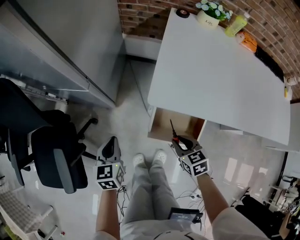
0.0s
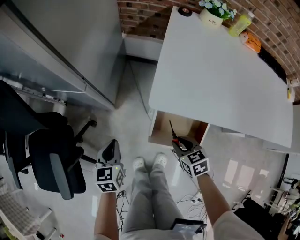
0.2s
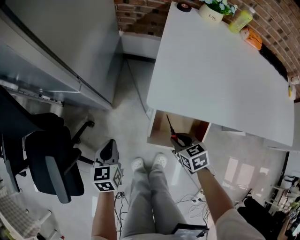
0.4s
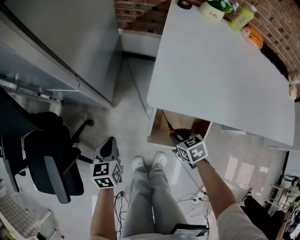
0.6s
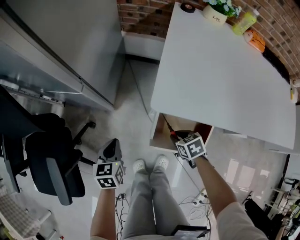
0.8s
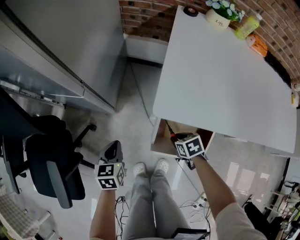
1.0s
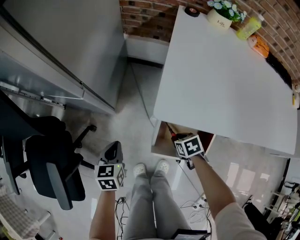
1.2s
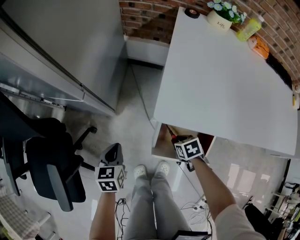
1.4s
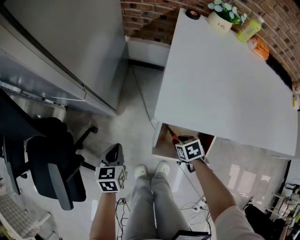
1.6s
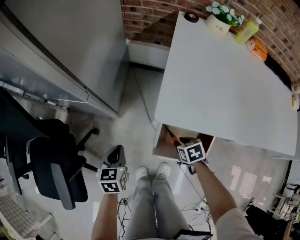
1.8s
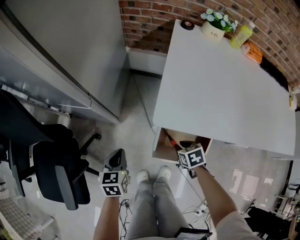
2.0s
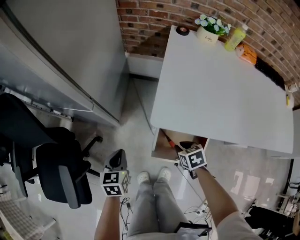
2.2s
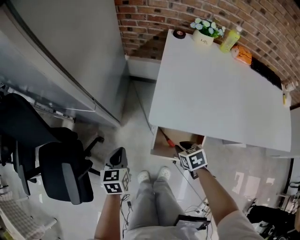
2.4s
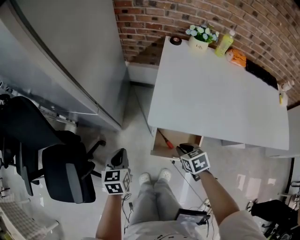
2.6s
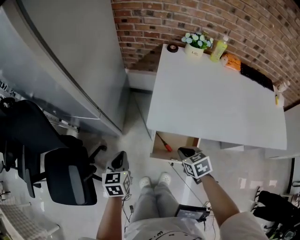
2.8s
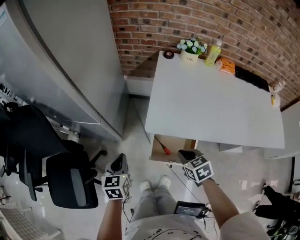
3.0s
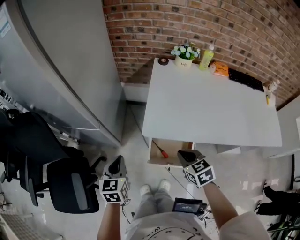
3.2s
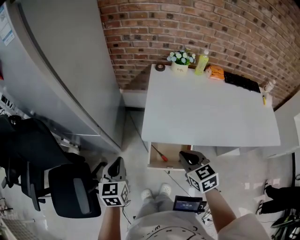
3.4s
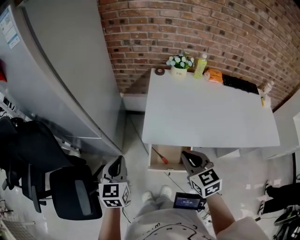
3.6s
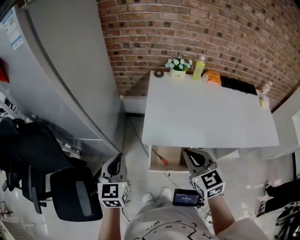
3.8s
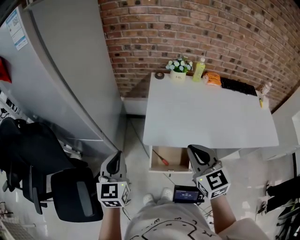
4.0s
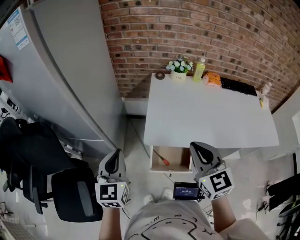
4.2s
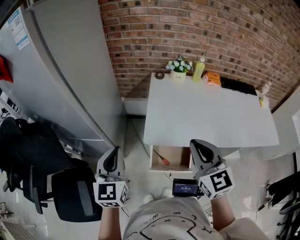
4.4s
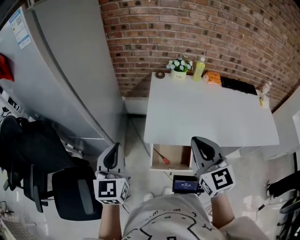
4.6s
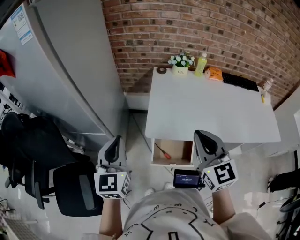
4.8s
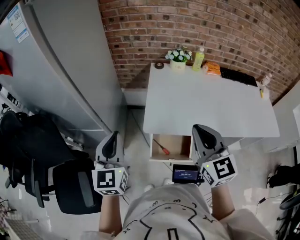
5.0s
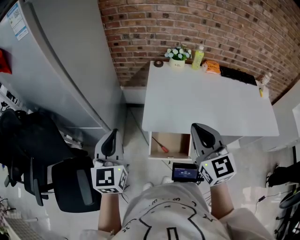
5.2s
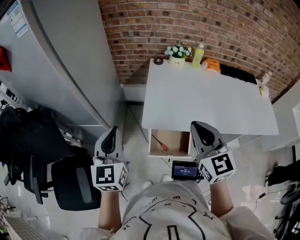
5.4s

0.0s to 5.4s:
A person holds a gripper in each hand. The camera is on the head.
0.0s to 1.4s: The right gripper shifts approximately 15 cm downward and forward, and rotates some 20 degrees, while the left gripper is displaced downward by about 10 cm.
1.4s to 2.8s: Both grippers move upward, roughly 20 cm.
2.8s to 4.0s: The grippers both shift upward by approximately 25 cm. The right gripper tips its fingers upward by approximately 40 degrees, while the left gripper swivels roughly 30 degrees.
4.0s to 5.4s: The left gripper shifts about 5 cm upward.

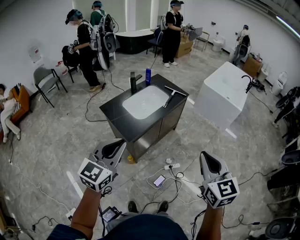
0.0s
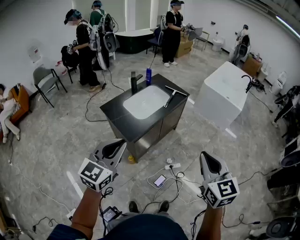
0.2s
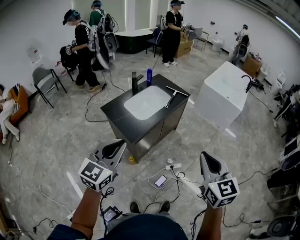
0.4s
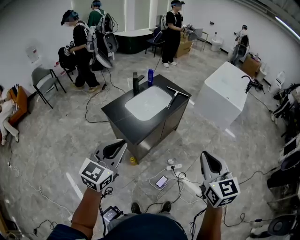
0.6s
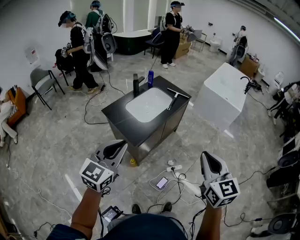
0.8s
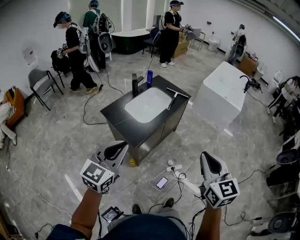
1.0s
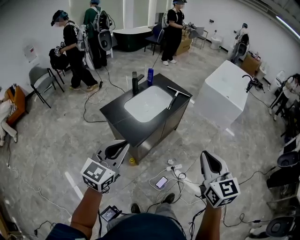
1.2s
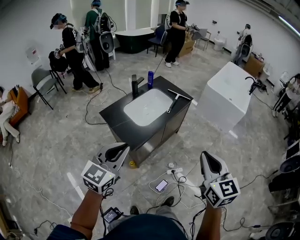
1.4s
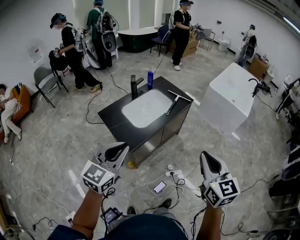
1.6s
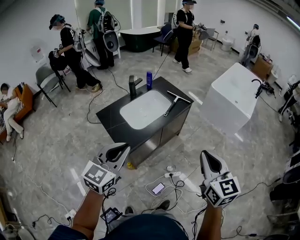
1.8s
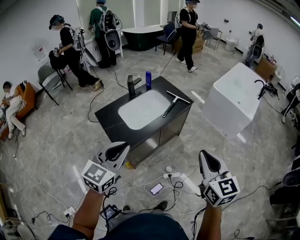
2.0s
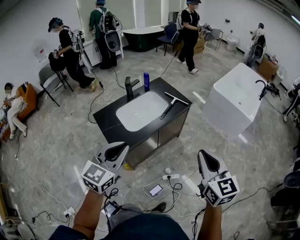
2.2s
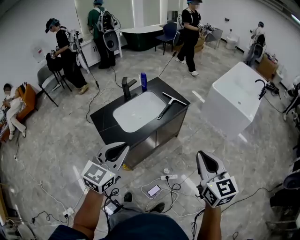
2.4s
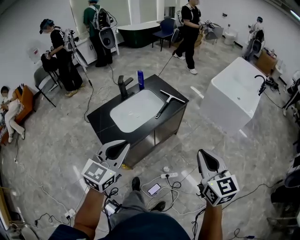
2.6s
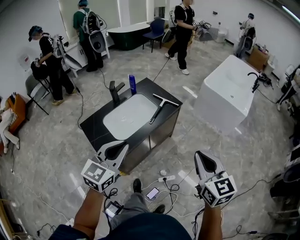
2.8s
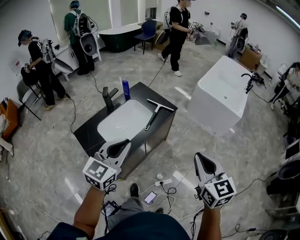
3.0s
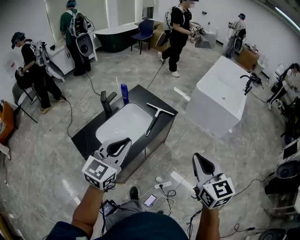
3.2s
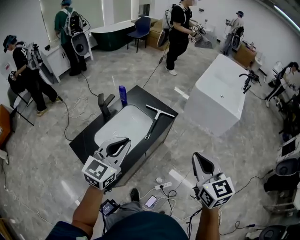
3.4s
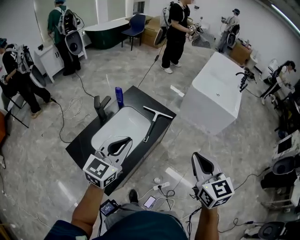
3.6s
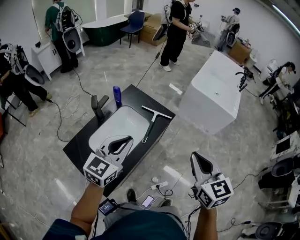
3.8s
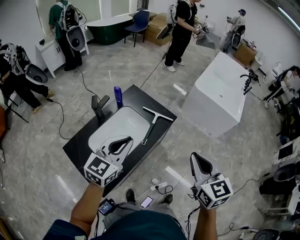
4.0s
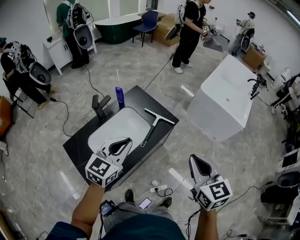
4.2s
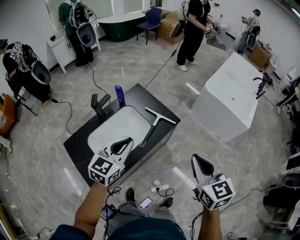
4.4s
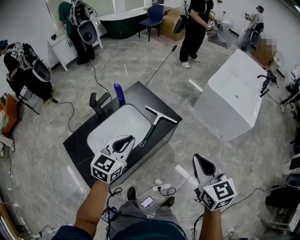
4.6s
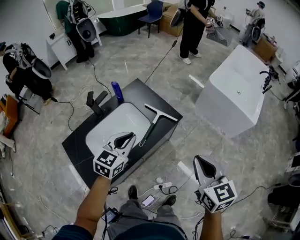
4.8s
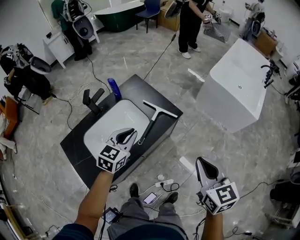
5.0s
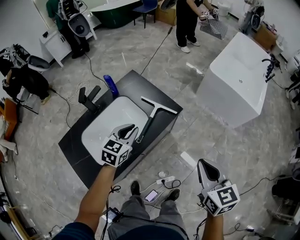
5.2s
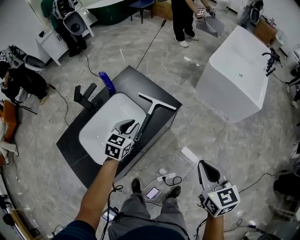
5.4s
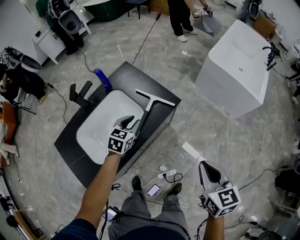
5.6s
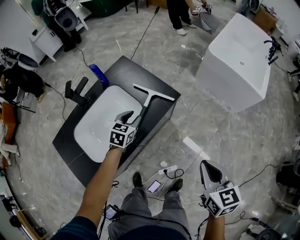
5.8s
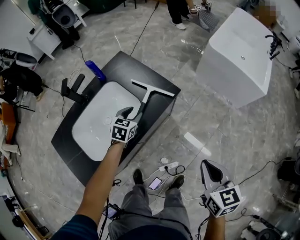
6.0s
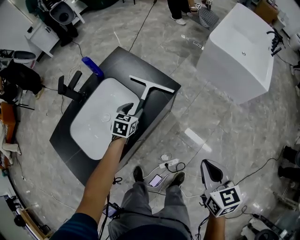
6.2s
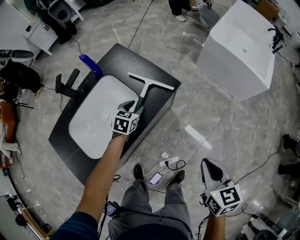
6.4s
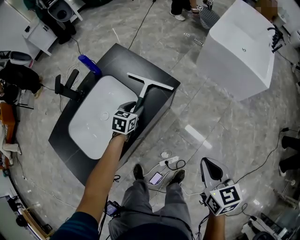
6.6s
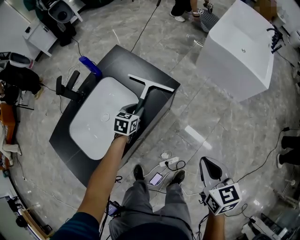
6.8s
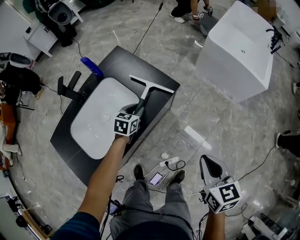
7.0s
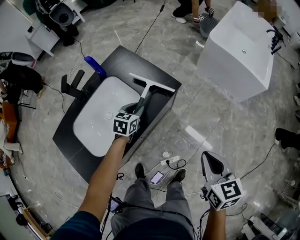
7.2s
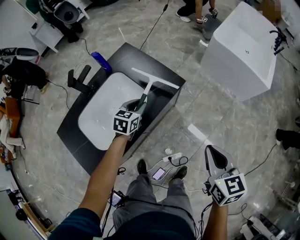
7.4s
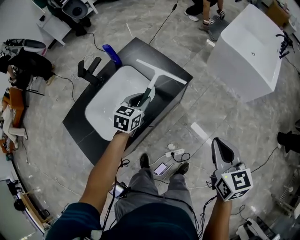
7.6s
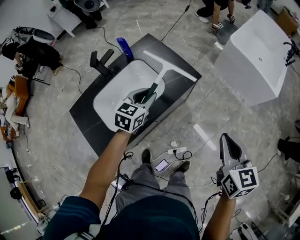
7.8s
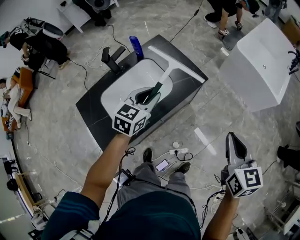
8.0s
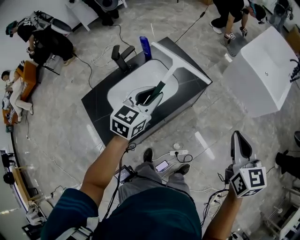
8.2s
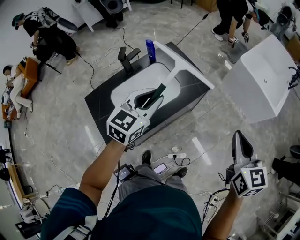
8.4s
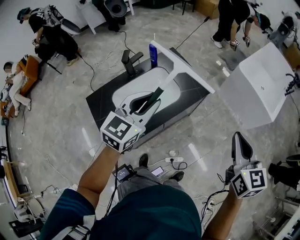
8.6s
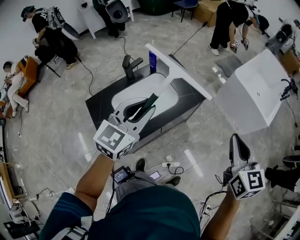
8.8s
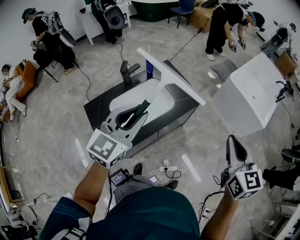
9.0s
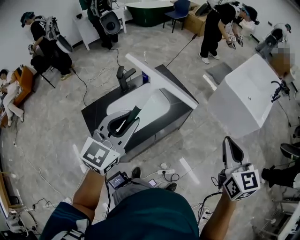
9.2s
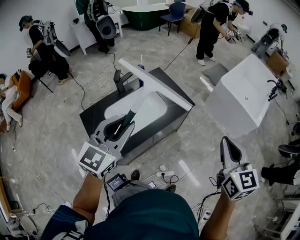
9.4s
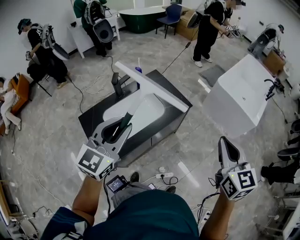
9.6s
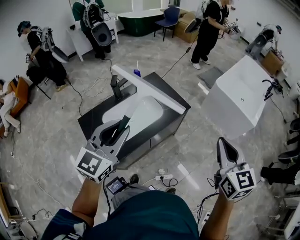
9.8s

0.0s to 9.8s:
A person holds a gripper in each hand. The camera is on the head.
0.0s to 1.4s: Both grippers travel together forward, about 10 cm.
1.4s to 2.8s: The two grippers go roughly 25 cm forward and to the right.
2.8s to 4.2s: Both grippers move forward, some 25 cm.
4.2s to 5.6s: The right gripper is displaced downward and to the right by about 20 cm. The left gripper moves downward and forward, roughly 35 cm, and turns by roughly 20 degrees.
5.6s to 7.0s: The left gripper travels downward by roughly 10 cm, and opens, then closes once more, while the right gripper shifts roughly 5 cm downward.
7.0s to 8.4s: The left gripper shifts about 40 cm upward and backward, and turns by about 30 degrees, while the right gripper heads upward, covering about 20 cm.
8.4s to 9.8s: The left gripper moves backward and upward, some 20 cm, while the right gripper heads upward and backward, covering roughly 10 cm.

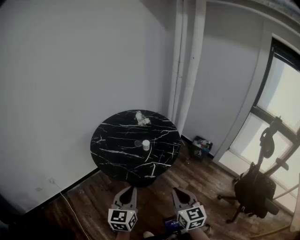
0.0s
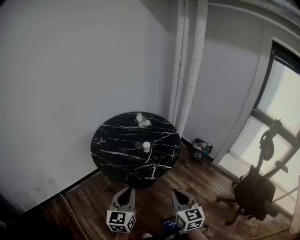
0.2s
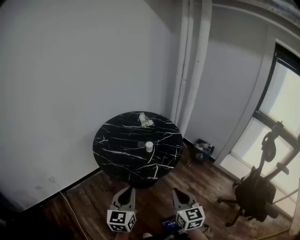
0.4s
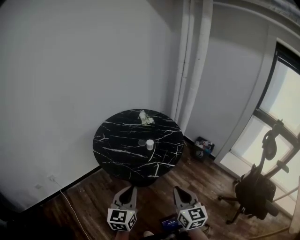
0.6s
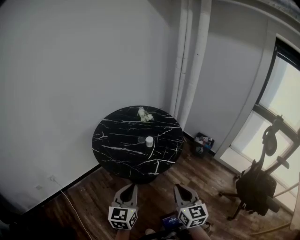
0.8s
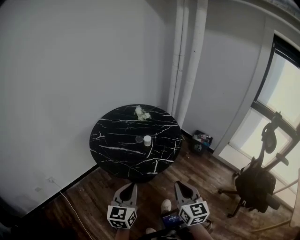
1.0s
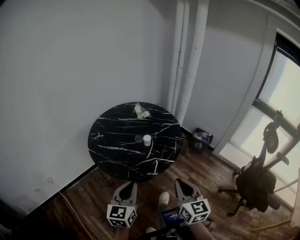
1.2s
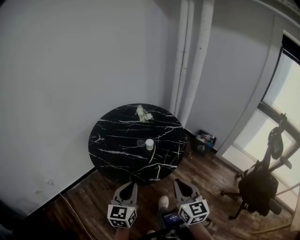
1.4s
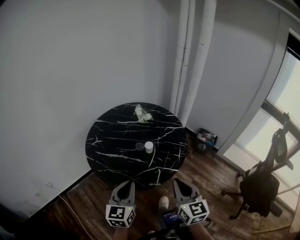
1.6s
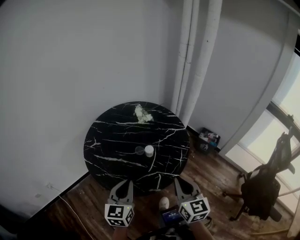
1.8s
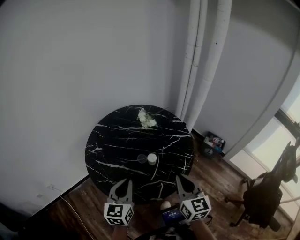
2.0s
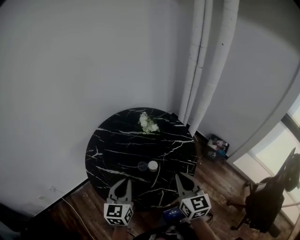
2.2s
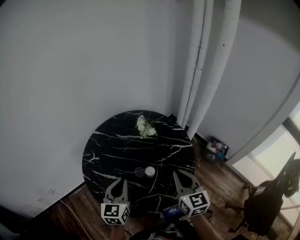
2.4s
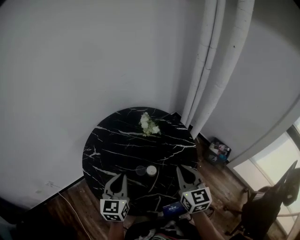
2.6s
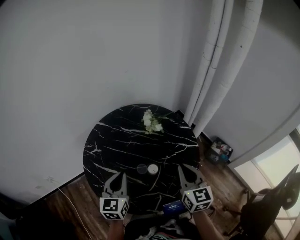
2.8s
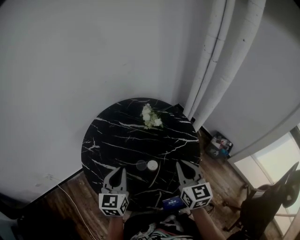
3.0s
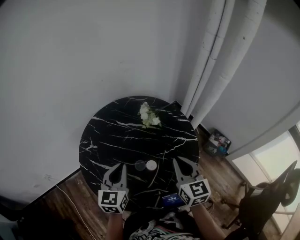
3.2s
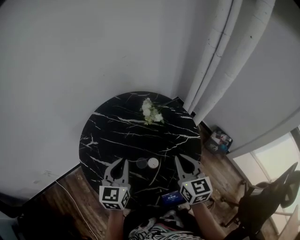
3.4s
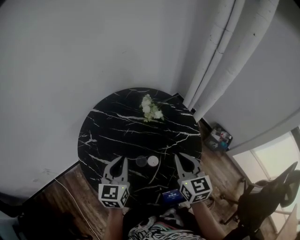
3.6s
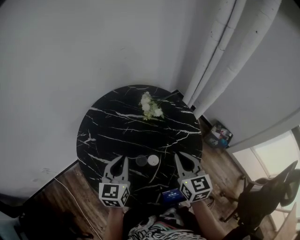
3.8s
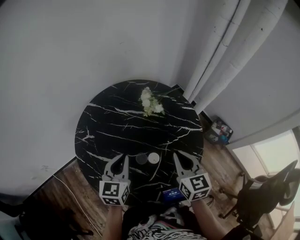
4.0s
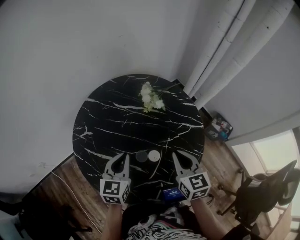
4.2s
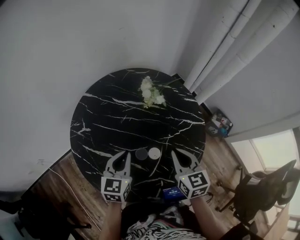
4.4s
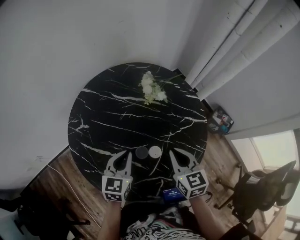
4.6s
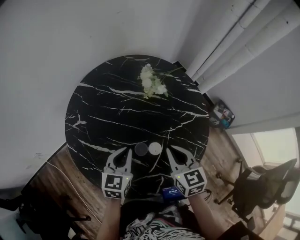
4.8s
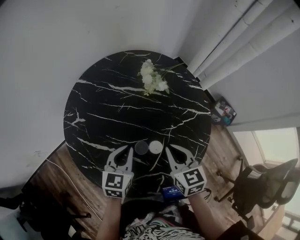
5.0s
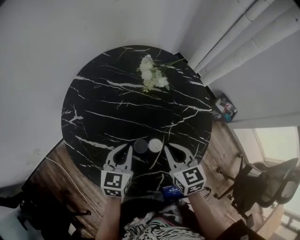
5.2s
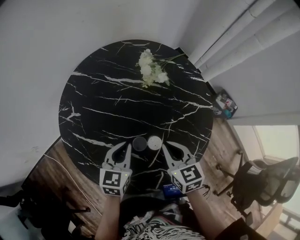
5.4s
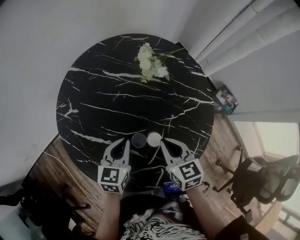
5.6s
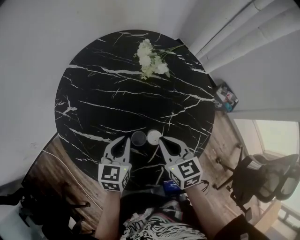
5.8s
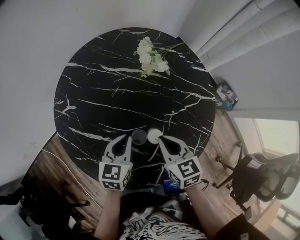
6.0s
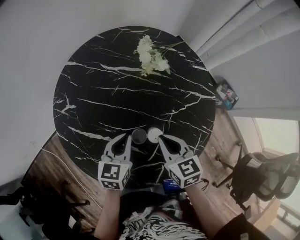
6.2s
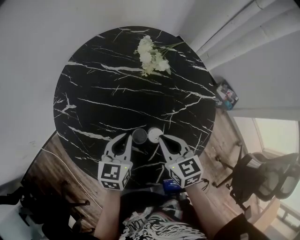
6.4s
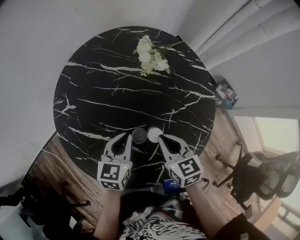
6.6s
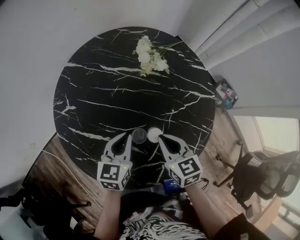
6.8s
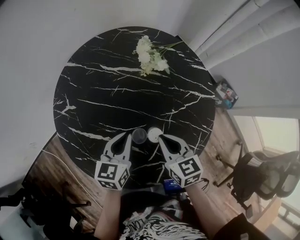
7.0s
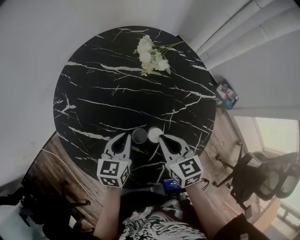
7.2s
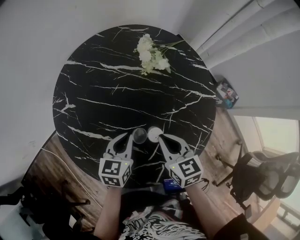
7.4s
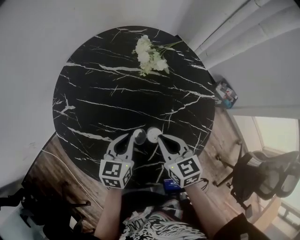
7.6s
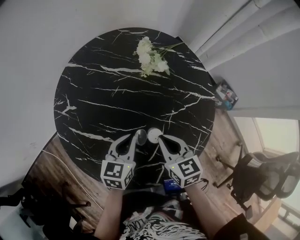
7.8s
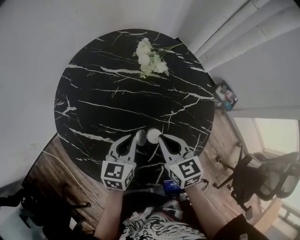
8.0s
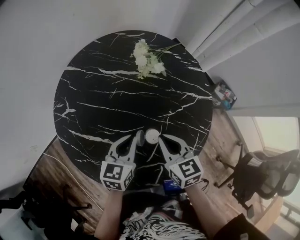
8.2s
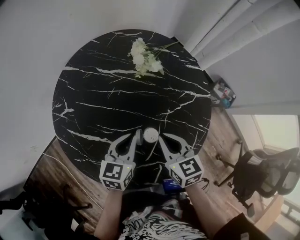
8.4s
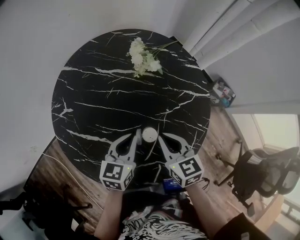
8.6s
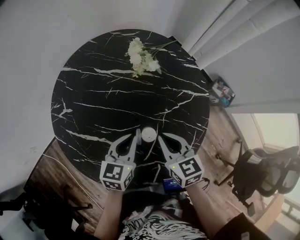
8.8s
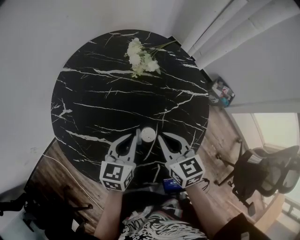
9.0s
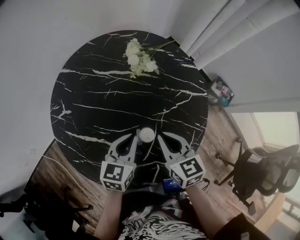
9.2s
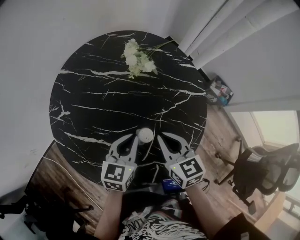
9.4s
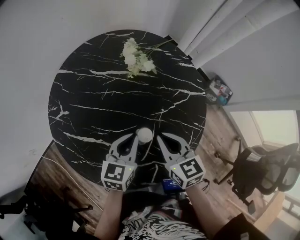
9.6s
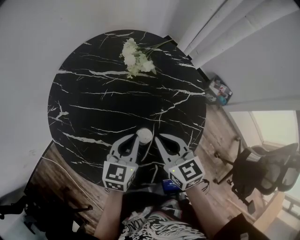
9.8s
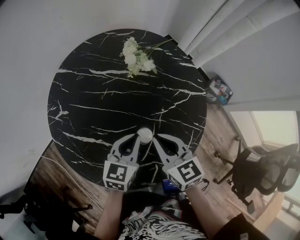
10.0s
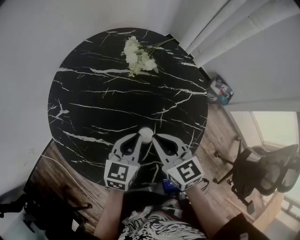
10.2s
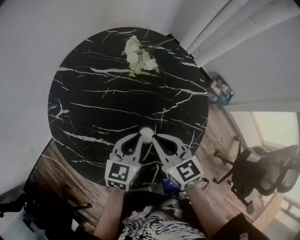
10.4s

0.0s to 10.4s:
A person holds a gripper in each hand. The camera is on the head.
0.0s to 1.4s: The two grippers go about 10 cm forward.
1.4s to 3.0s: The grippers both shift forward by approximately 30 cm.
3.0s to 4.4s: The left gripper travels downward and forward by roughly 10 cm, while the right gripper travels downward by roughly 10 cm.
4.4s to 6.0s: Both grippers move downward, some 10 cm.
6.0s to 7.4s: There are only small adjustments of the grippers.
7.4s to 9.0s: The left gripper shifts by approximately 5 cm.
9.0s to 10.4s: The grippers make only small movements.
